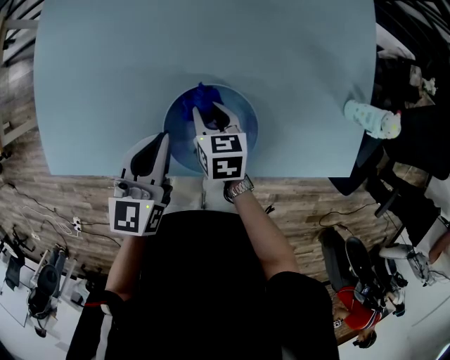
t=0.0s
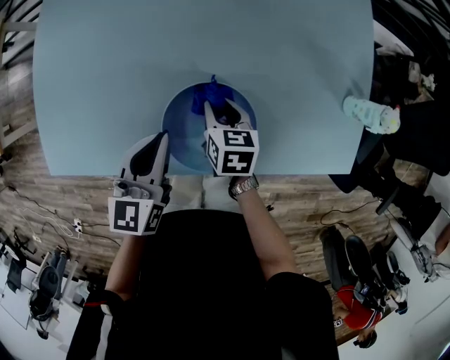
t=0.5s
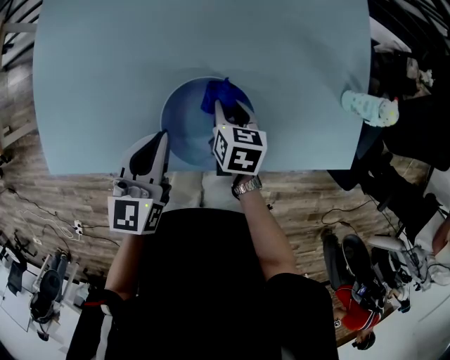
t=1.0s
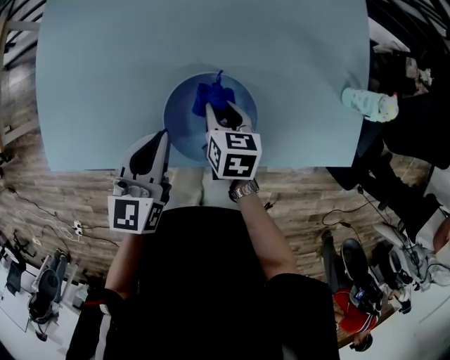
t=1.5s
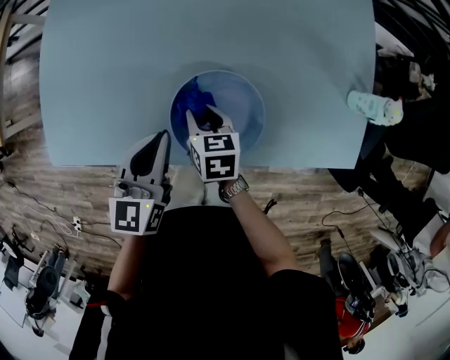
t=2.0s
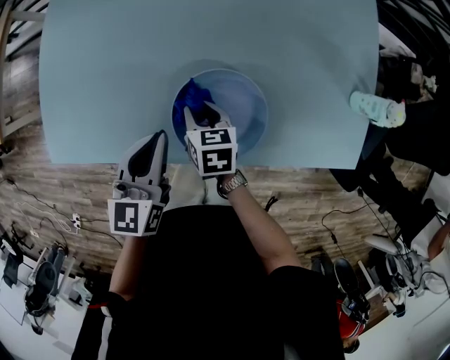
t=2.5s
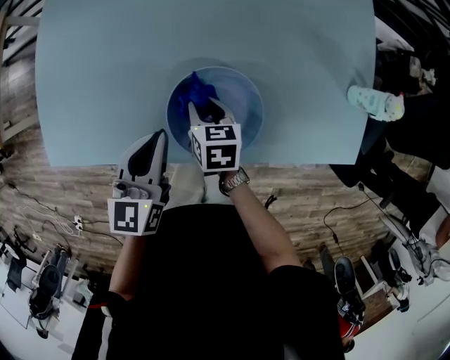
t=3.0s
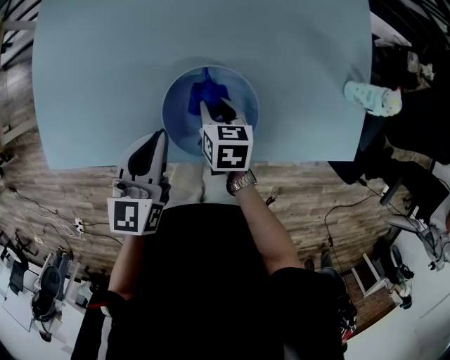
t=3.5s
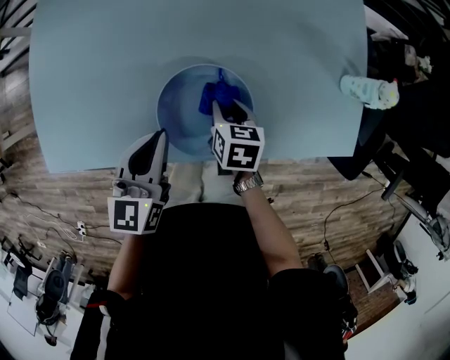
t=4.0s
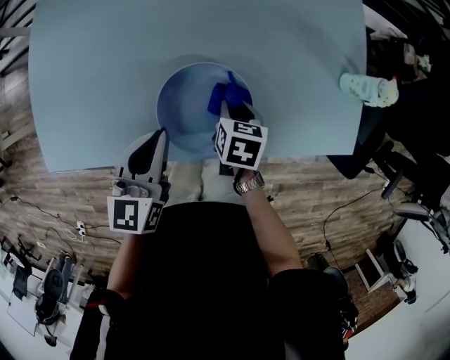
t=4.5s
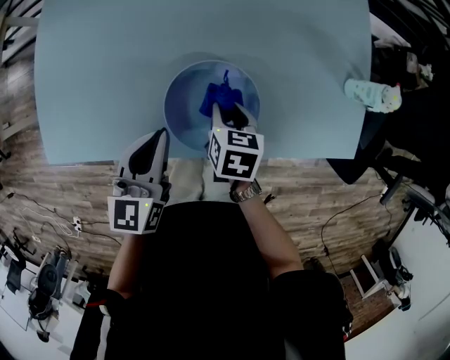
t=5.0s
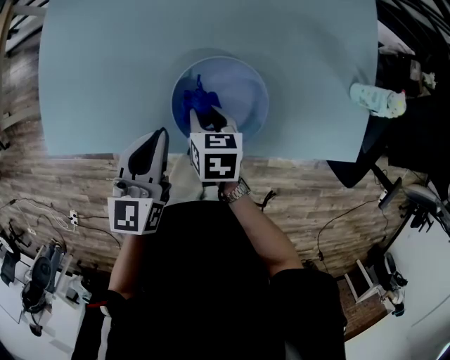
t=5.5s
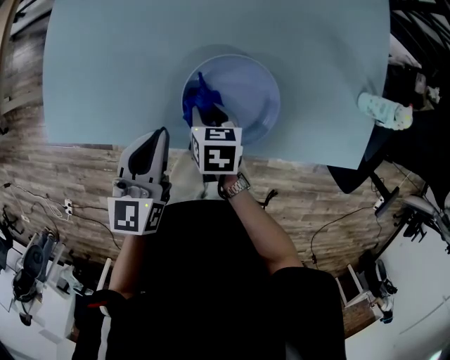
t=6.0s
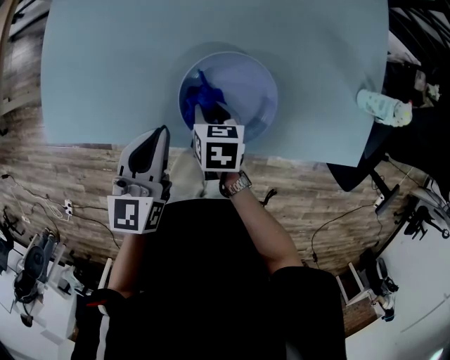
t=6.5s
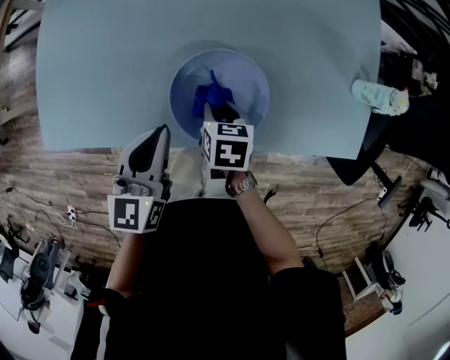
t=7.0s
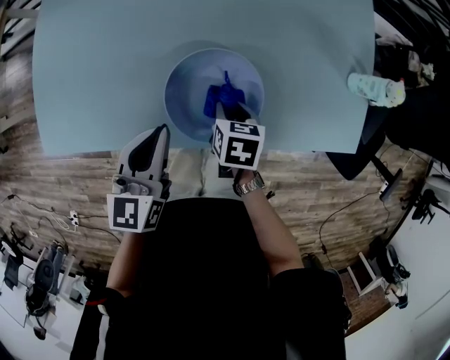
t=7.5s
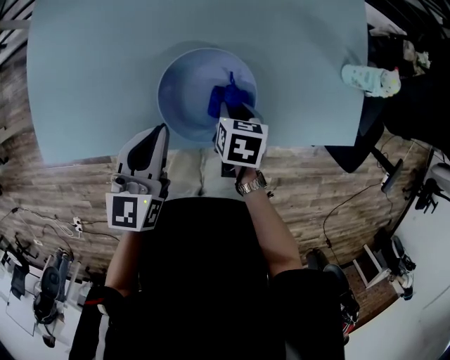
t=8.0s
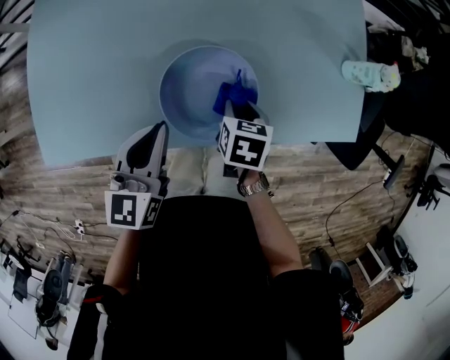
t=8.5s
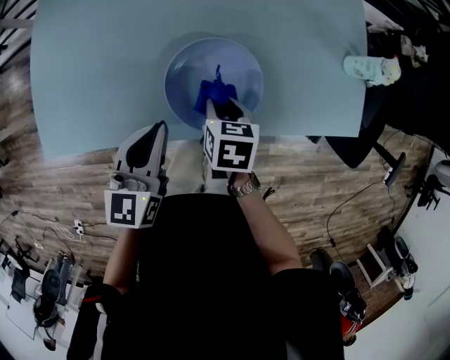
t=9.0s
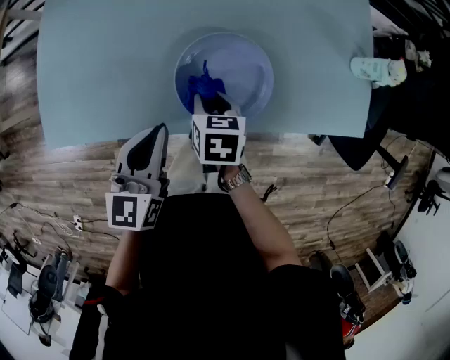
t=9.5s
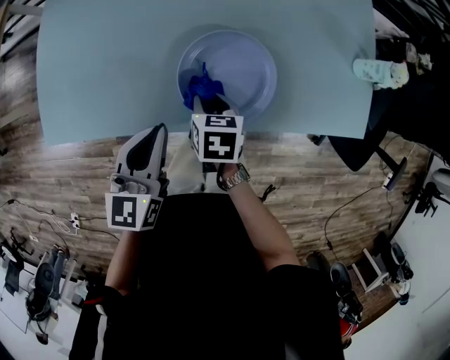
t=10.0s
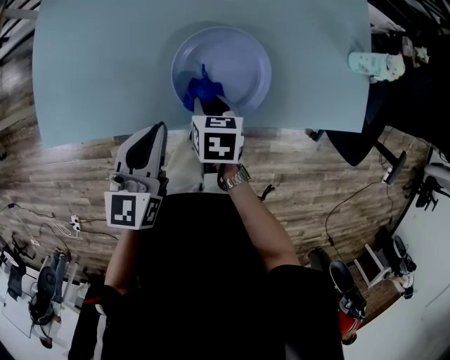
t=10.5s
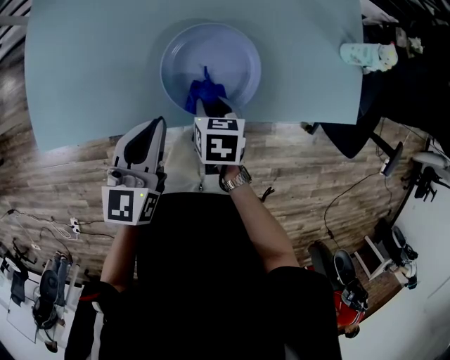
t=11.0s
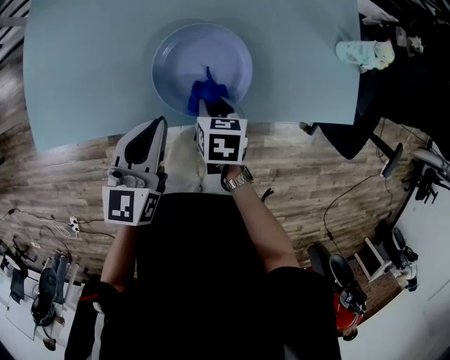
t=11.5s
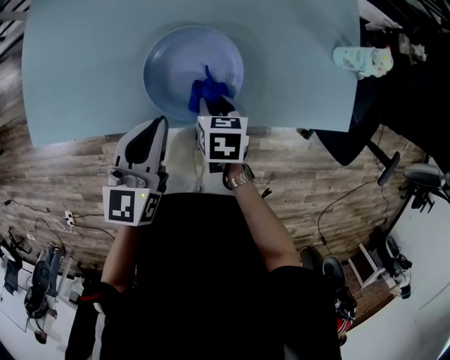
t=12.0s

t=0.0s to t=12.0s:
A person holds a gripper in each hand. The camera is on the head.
t=0.0s to t=2.0s: The right gripper changes place by roughly 5 cm.
t=2.0s to t=4.0s: The right gripper heads to the right, covering some 10 cm.
t=4.0s to t=6.0s: The right gripper heads to the left, covering some 10 cm. Meanwhile the left gripper heads to the left, covering about 5 cm.
t=6.0s to t=8.0s: The left gripper moves to the right, roughly 5 cm. The right gripper heads to the right, covering some 15 cm.
t=8.0s to t=10.0s: The right gripper goes about 10 cm to the left. The left gripper is displaced backward by about 5 cm.
t=10.0s to t=12.0s: Both grippers move to the right, roughly 10 cm.

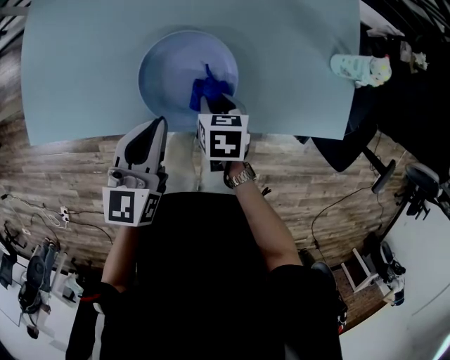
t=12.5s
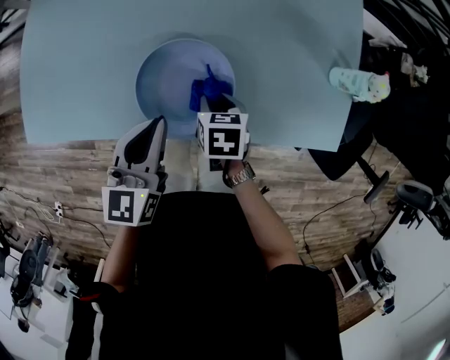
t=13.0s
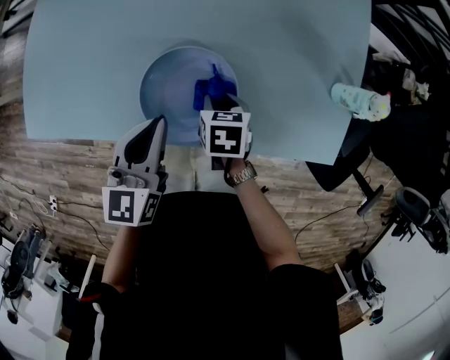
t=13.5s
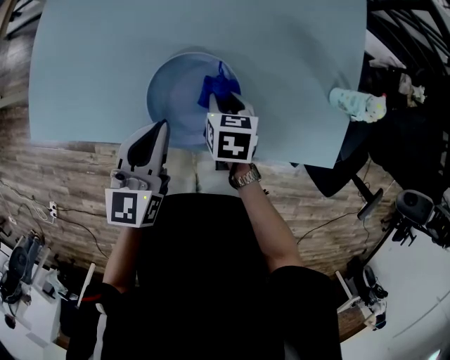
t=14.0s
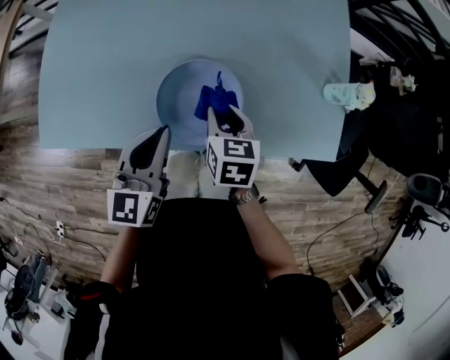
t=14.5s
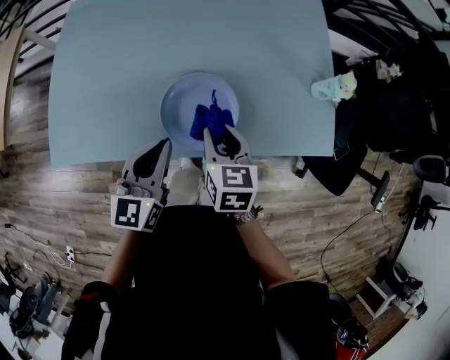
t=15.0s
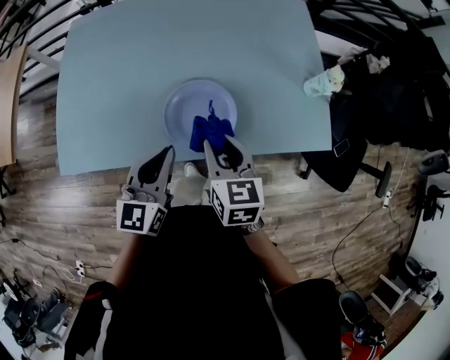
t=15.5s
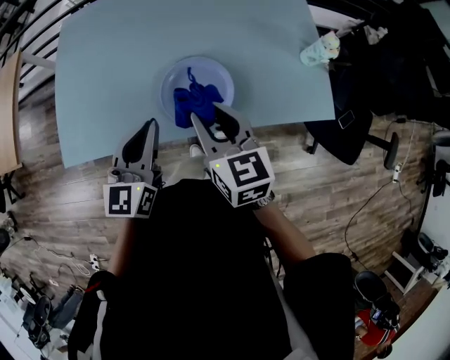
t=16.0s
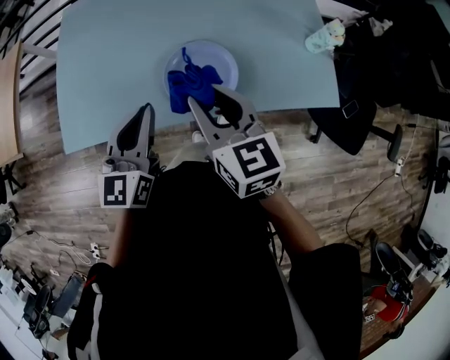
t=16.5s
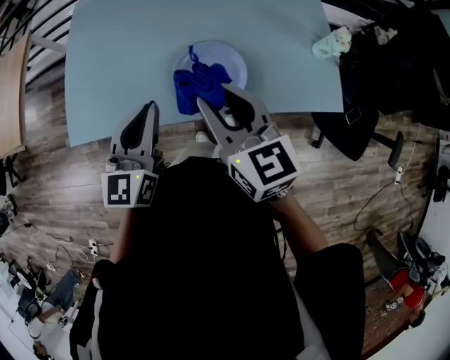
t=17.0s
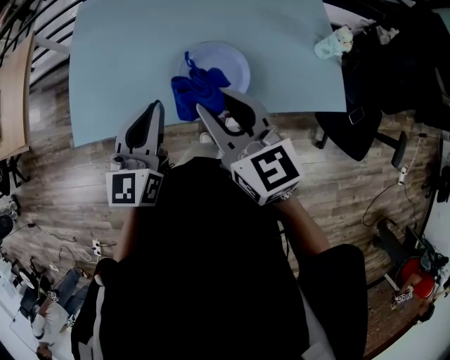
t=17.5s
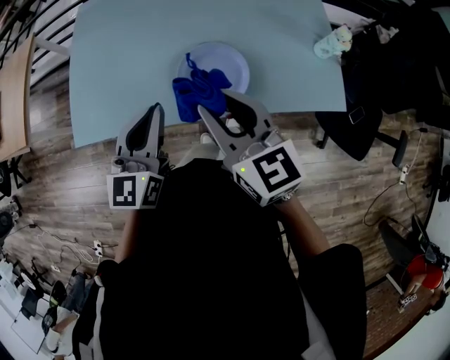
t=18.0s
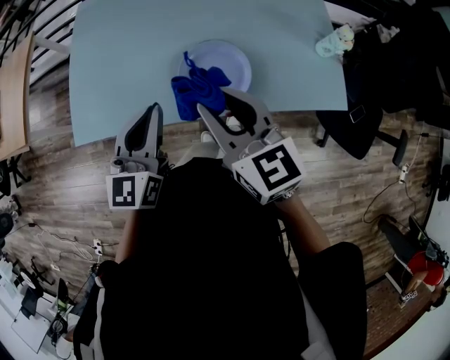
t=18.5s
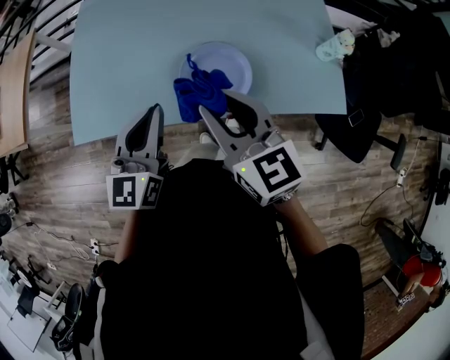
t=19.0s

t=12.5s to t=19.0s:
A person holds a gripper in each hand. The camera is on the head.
t=12.5s to t=14.5s: The right gripper moves upward, some 10 cm.
t=14.5s to t=17.0s: The right gripper moves upward, approximately 25 cm, and tips its fingers upward by approximately 30 degrees; the left gripper is displaced upward, backward and to the left by roughly 15 cm.
t=17.0s to t=19.0s: The grippers move only a little.

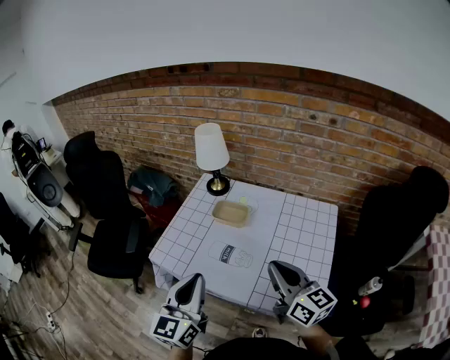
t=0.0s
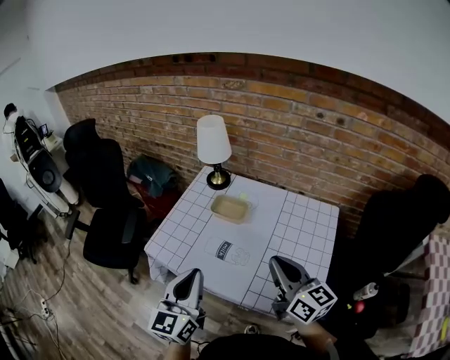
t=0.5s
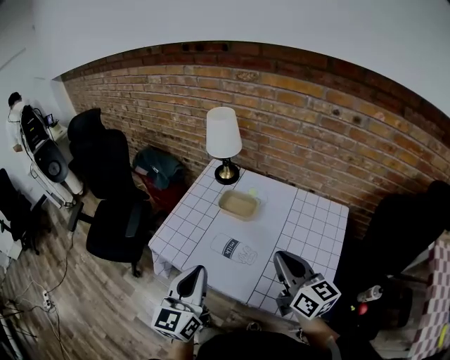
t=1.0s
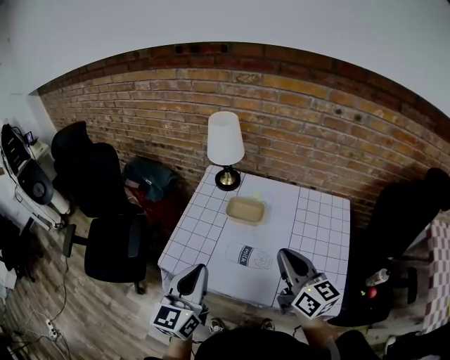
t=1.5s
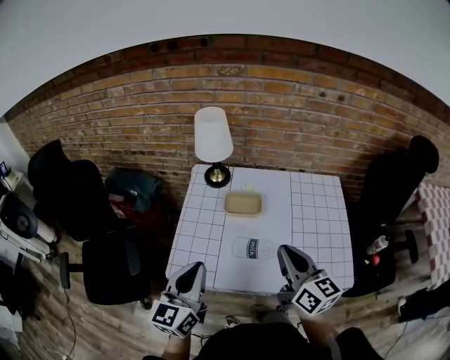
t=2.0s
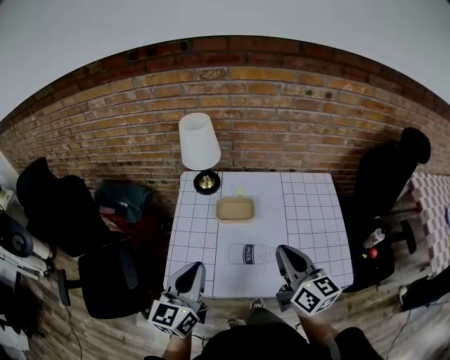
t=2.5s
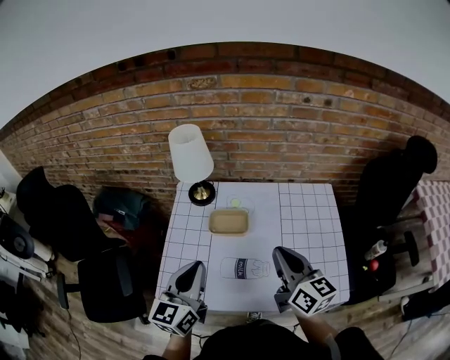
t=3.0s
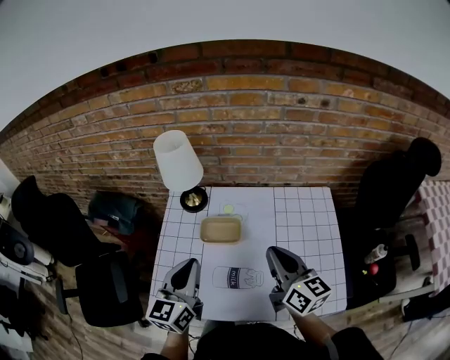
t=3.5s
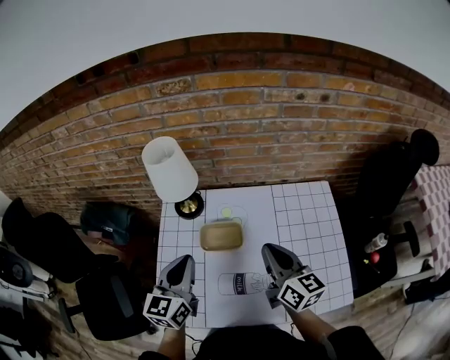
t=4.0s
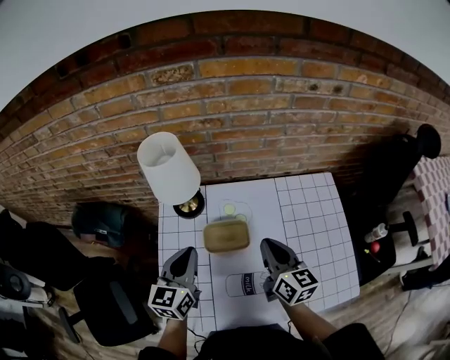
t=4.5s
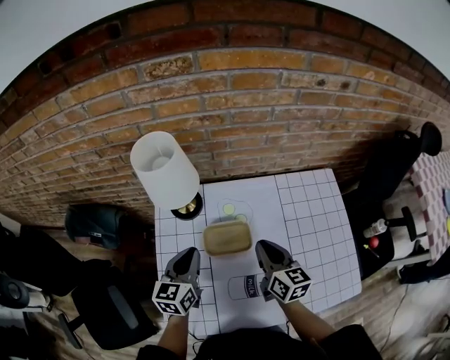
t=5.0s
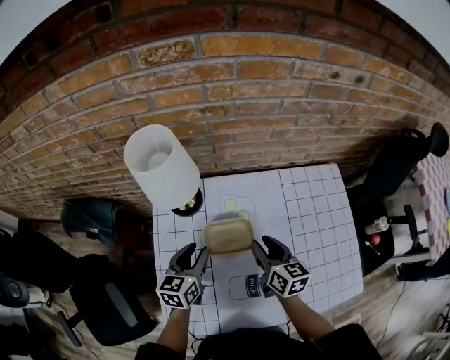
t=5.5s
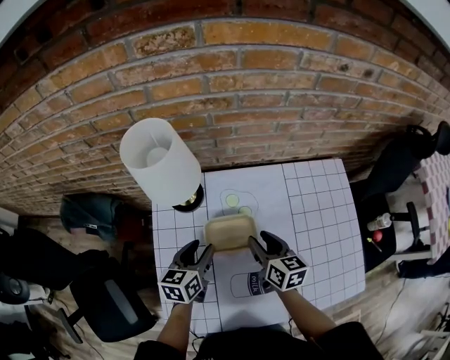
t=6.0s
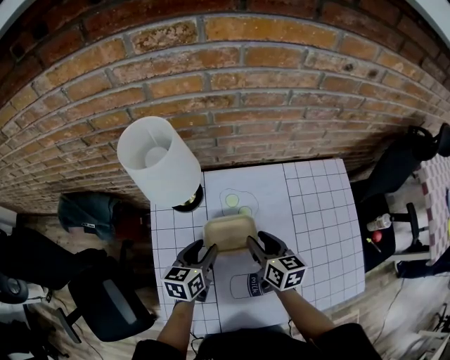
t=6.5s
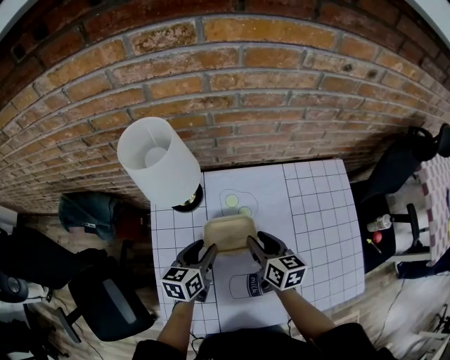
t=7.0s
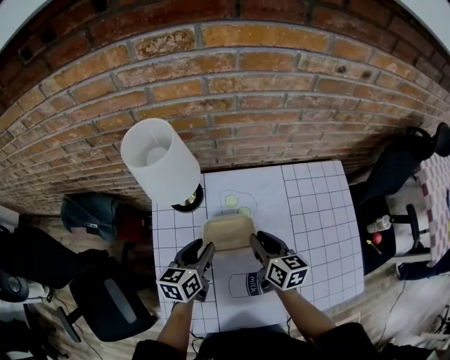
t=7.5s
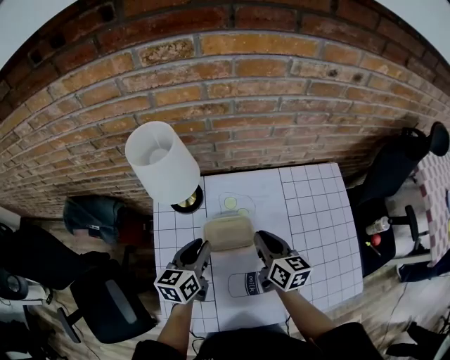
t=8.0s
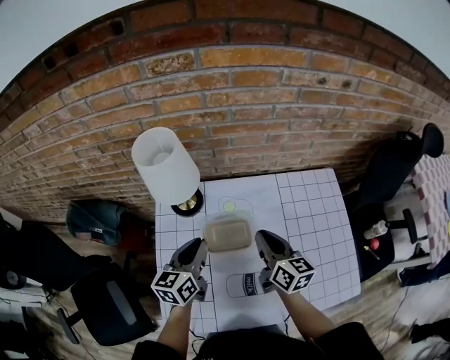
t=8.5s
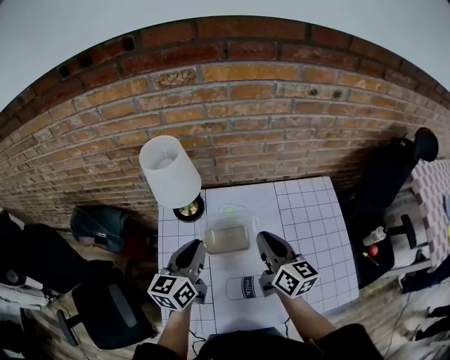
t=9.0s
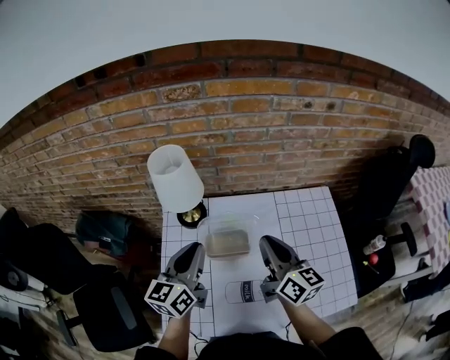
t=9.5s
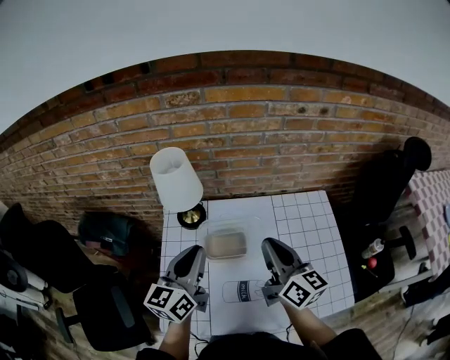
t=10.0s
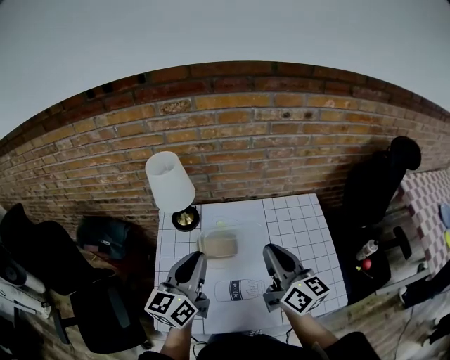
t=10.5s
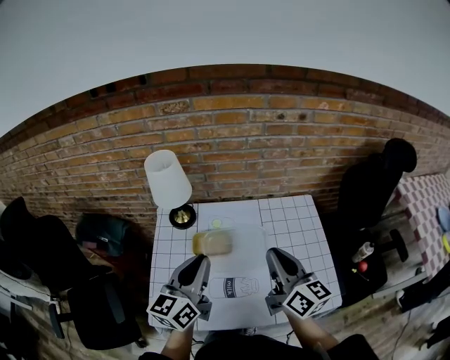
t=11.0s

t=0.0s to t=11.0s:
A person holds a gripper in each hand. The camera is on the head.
t=0.0s to t=2.0s: Both grippers travel together to the left and forward, roughly 15 cm. The right gripper swivels about 20 degrees.
t=2.0s to t=3.5s: Both grippers move forward and to the right, about 15 cm.
t=3.5s to t=5.5s: The right gripper moves downward, forward and to the left, about 20 cm, changes its angle by approximately 20 degrees, and opens up, while the left gripper goes approximately 25 cm downward and forward, rotates some 30 degrees, and opens up.
t=5.5s to t=7.5s: The grippers move only a little.
t=7.5s to t=9.0s: The grippers both shift upward by approximately 15 cm. The left gripper closes.
t=9.0s to t=11.0s: The two grippers go about 20 cm backward, upward and to the right.
